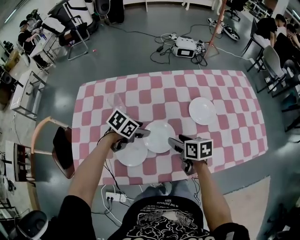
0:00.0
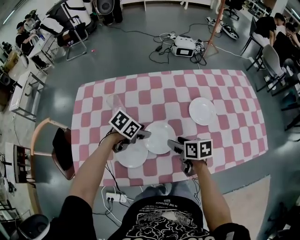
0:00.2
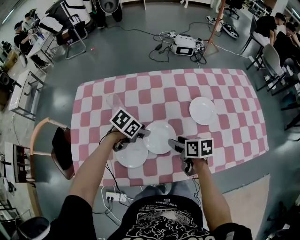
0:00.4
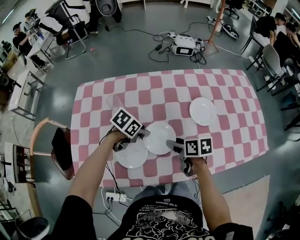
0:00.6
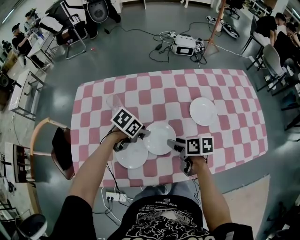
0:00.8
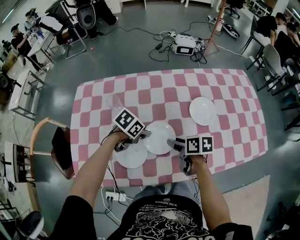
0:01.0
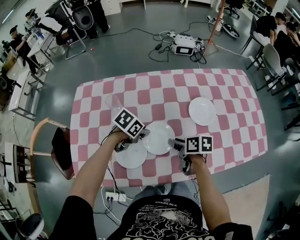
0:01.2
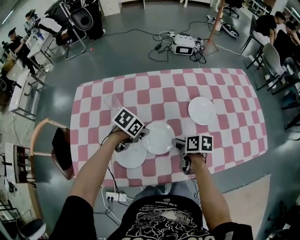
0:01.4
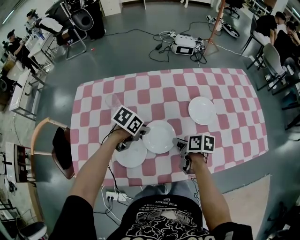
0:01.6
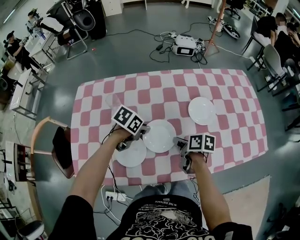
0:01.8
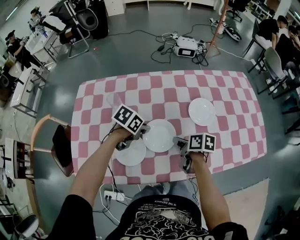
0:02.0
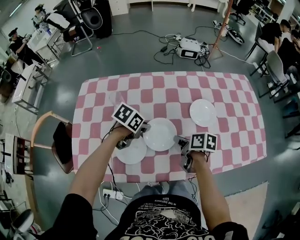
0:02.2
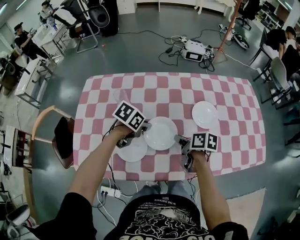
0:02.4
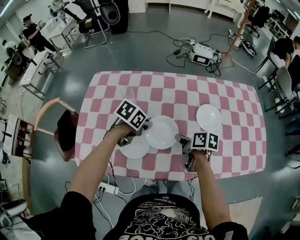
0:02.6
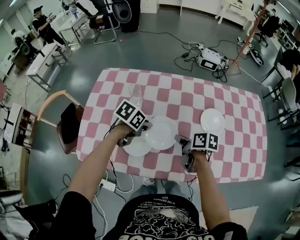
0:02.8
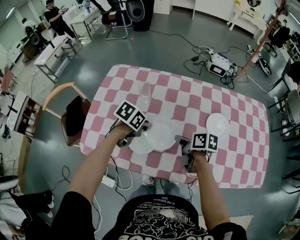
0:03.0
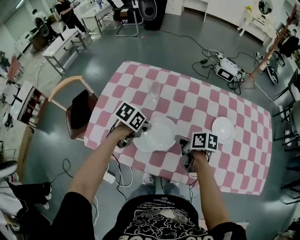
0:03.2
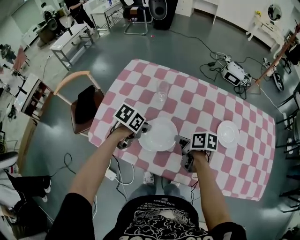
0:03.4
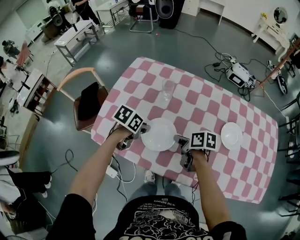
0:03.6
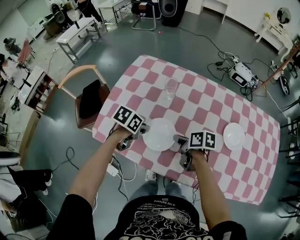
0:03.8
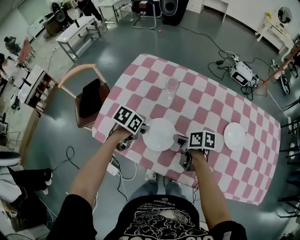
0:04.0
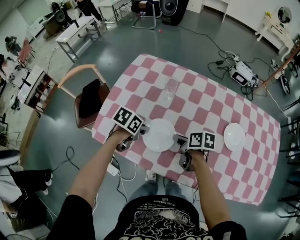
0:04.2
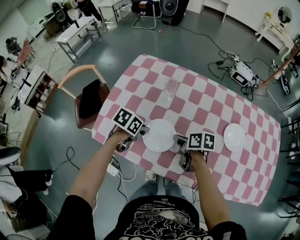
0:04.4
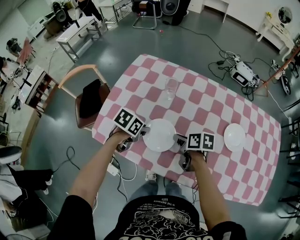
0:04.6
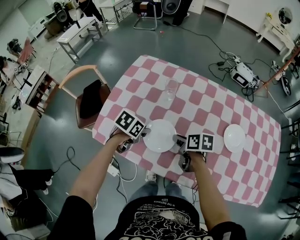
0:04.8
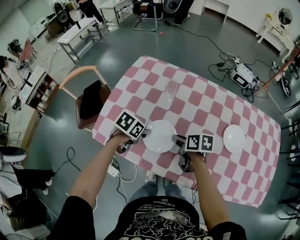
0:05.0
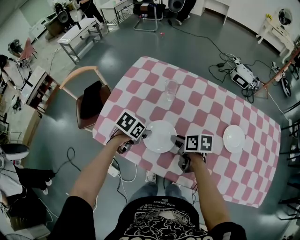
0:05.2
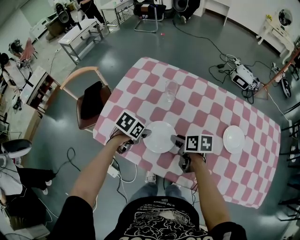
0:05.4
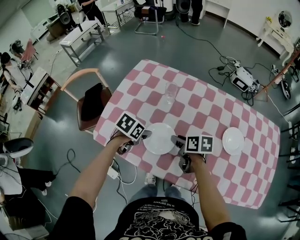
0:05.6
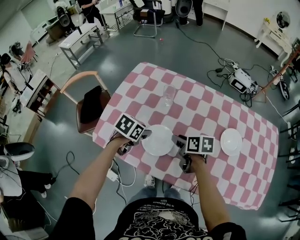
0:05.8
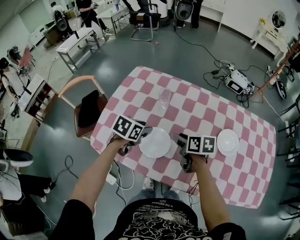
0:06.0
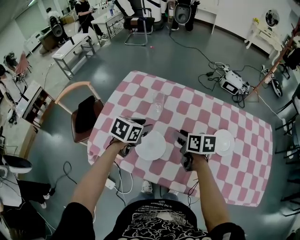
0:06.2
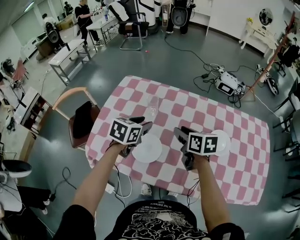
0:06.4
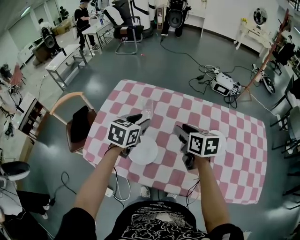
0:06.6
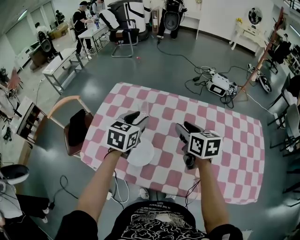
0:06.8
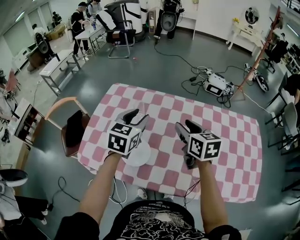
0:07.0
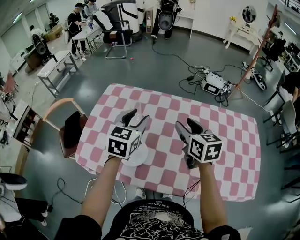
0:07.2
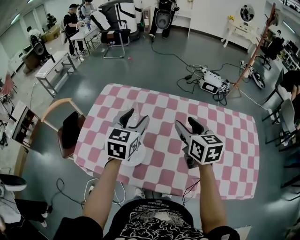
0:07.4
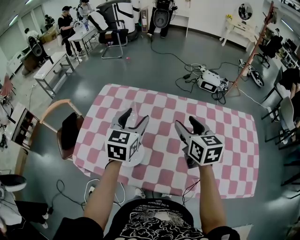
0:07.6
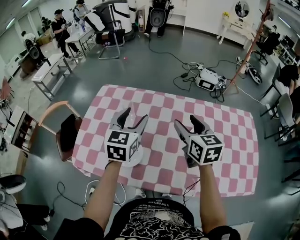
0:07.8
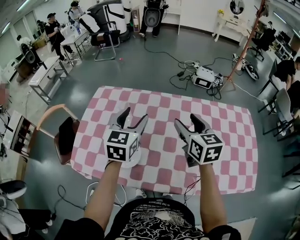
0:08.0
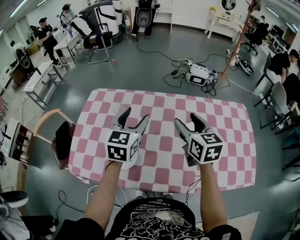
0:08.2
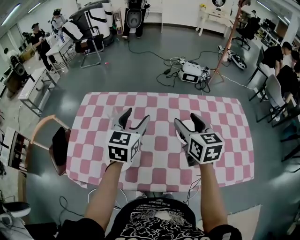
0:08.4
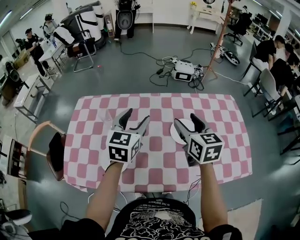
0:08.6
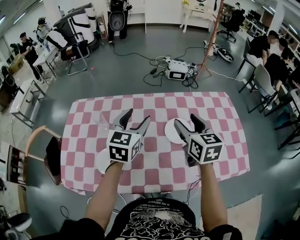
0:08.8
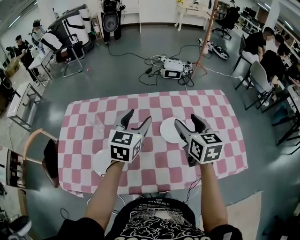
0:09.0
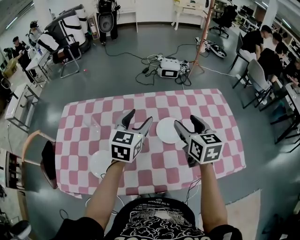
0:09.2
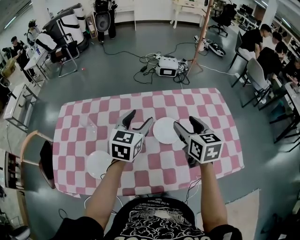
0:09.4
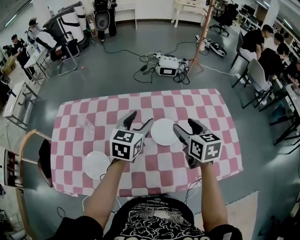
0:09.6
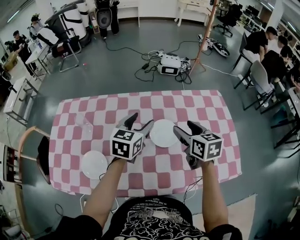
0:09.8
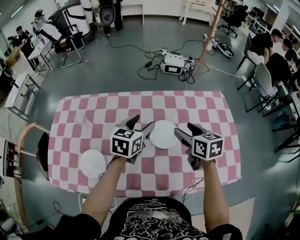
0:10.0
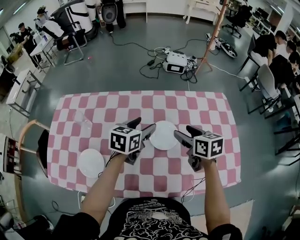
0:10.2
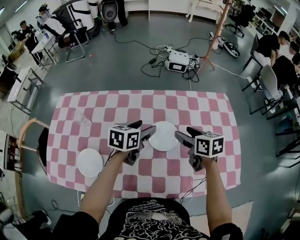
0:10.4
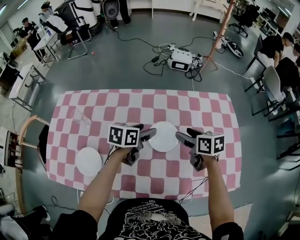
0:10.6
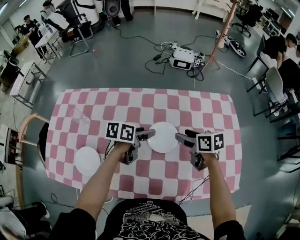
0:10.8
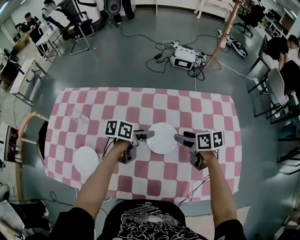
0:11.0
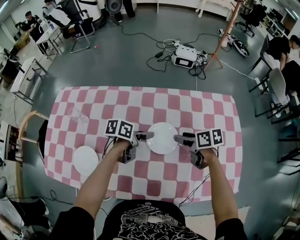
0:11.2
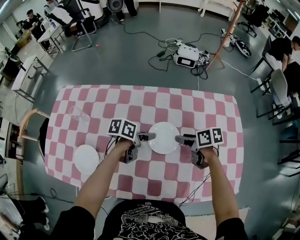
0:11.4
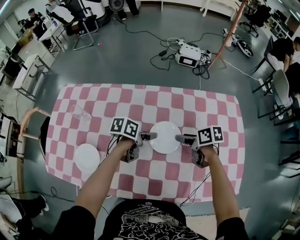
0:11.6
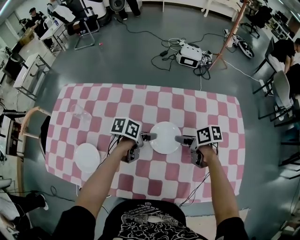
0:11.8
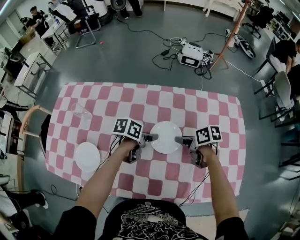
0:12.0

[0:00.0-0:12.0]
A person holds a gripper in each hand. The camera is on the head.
0:00.0 to 0:01.6: The left gripper closes, while the right gripper rotates roughly 20 degrees, and closes.
0:01.6 to 0:03.0: The right gripper ends up some 5 cm from where it was; the left gripper ends up roughly 10 cm from where it was, and turns by roughly 20 degrees.
0:03.0 to 0:04.4: The two grippers go approximately 10 cm to the left.
0:04.4 to 0:06.0: Both grippers travel together upward, some 5 cm. The right gripper opens.
0:06.0 to 0:07.6: The two grippers go roughly 20 cm upward and to the right. The right gripper swivels about 40 degrees. The left gripper tilts its fingers approximately 30 degrees upward, and opens up.
0:07.6 to 0:09.0: The grippers both shift to the right by some 15 cm.
0:09.0 to 0:10.4: The right gripper heads downward, to the right and forward, covering roughly 15 cm, and changes its angle by about 30 degrees. The left gripper is displaced downward and to the right by about 15 cm, and turns by some 30 degrees.
0:10.4 to 0:12.0: Both grippers move downward, roughly 10 cm. The left gripper swivels about 30 degrees, while the right gripper turns by about 30 degrees.

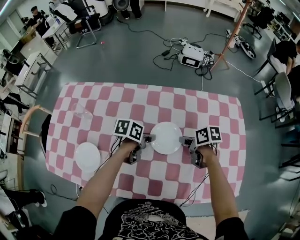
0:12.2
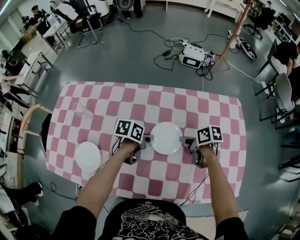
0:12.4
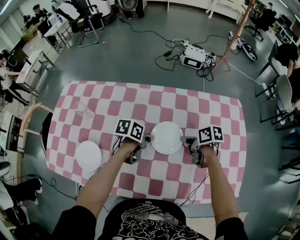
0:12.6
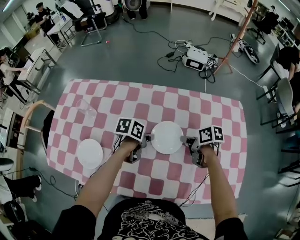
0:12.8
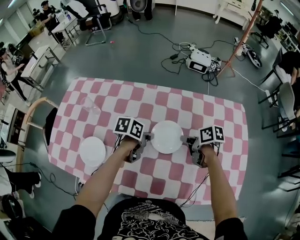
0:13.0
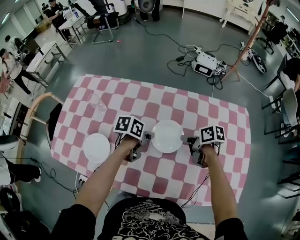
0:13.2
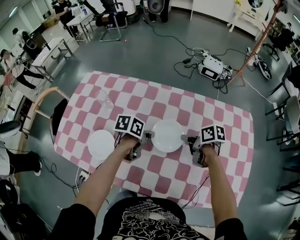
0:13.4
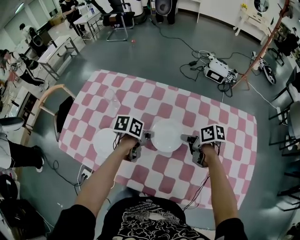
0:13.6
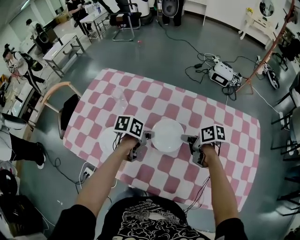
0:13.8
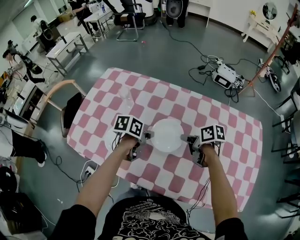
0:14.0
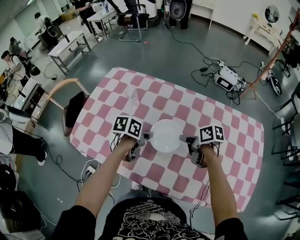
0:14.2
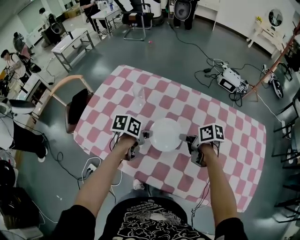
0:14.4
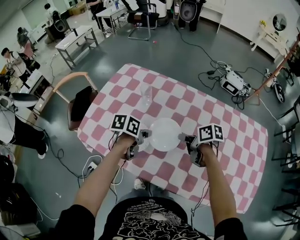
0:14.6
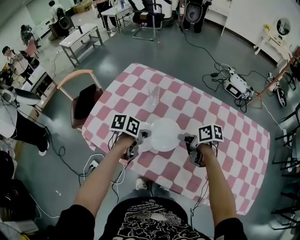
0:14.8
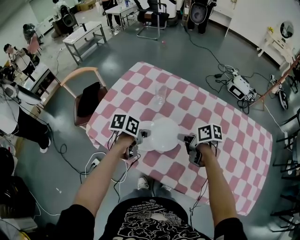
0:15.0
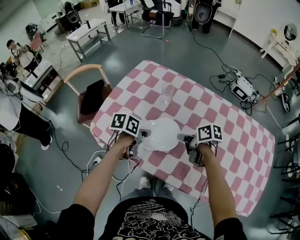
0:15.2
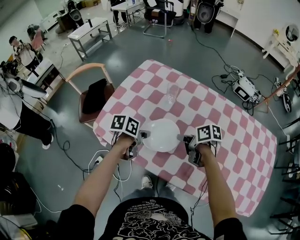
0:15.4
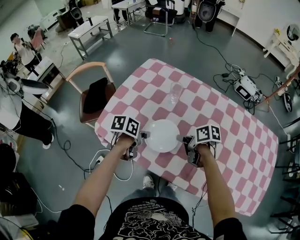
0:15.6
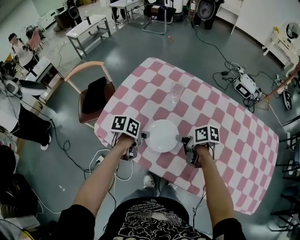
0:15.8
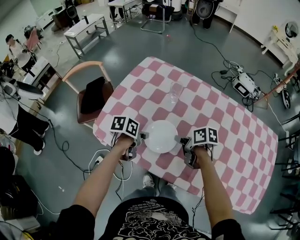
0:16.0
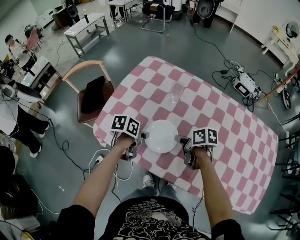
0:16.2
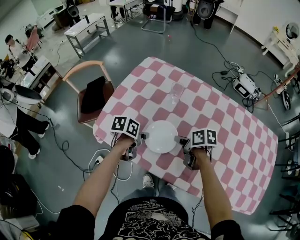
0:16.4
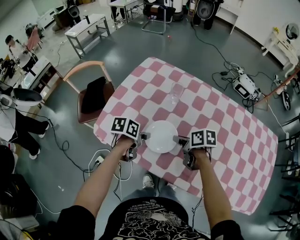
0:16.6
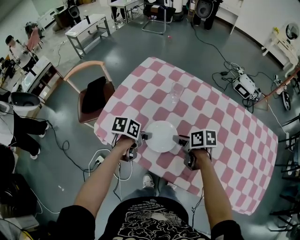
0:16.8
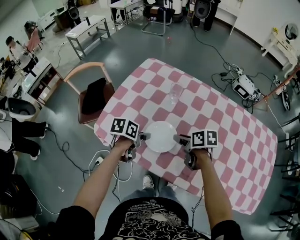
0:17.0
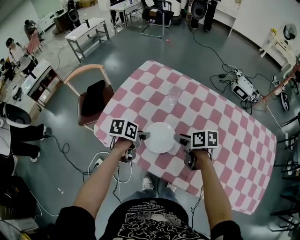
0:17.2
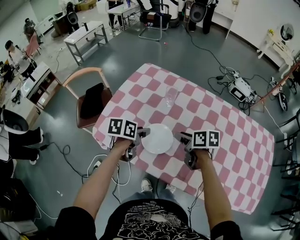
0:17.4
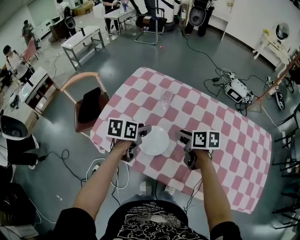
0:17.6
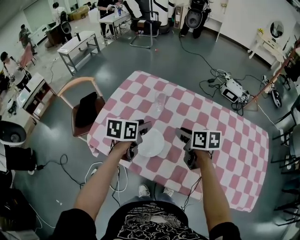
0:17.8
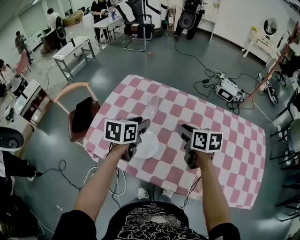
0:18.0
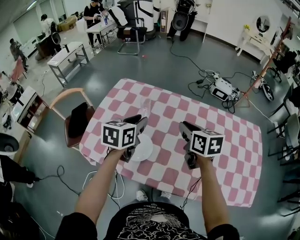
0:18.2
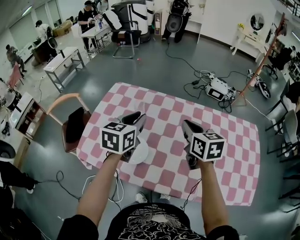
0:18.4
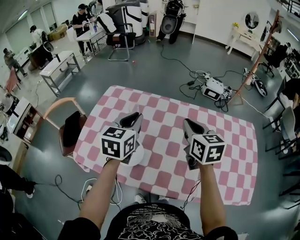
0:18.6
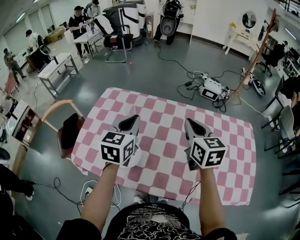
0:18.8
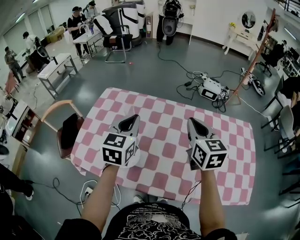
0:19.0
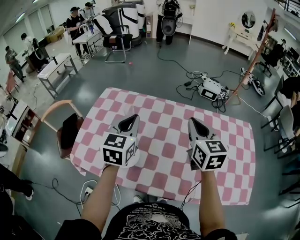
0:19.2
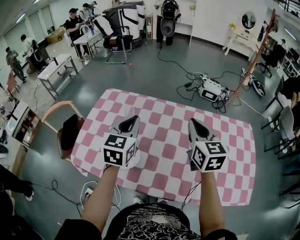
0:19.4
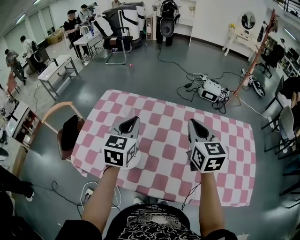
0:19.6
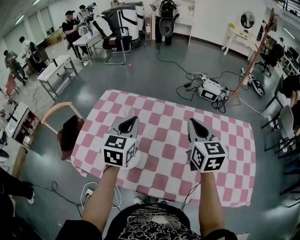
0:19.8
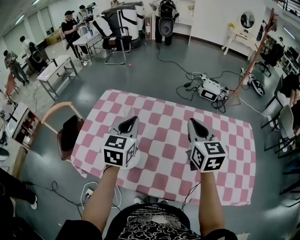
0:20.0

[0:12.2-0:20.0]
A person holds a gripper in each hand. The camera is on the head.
0:12.2 to 0:13.8: The right gripper changes place by some 15 cm. Meanwhile the left gripper shifts by about 15 cm.
0:13.8 to 0:15.4: Both grippers travel together to the left, approximately 25 cm.
0:15.4 to 0:16.8: The right gripper opens up; the left gripper opens its fingers.
0:16.8 to 0:18.4: The two grippers go approximately 25 cm upward and to the right. The right gripper rotates approximately 50 degrees, and closes up; the left gripper rotates roughly 50 degrees.
0:18.4 to 0:20.0: The right gripper moves to the right and upward, approximately 10 cm.

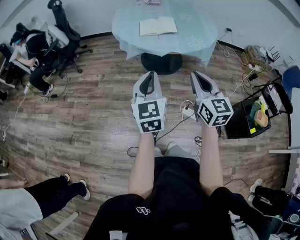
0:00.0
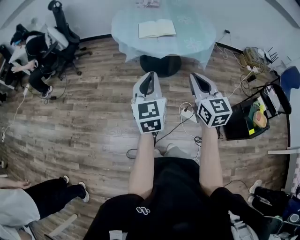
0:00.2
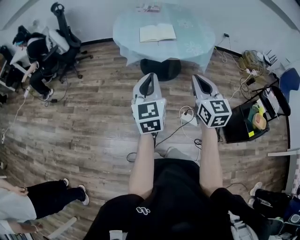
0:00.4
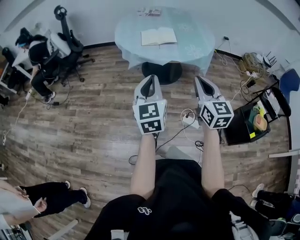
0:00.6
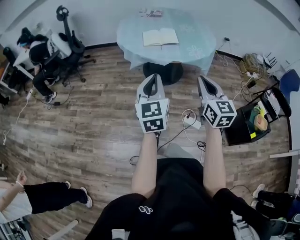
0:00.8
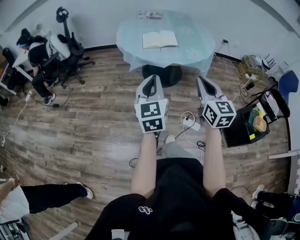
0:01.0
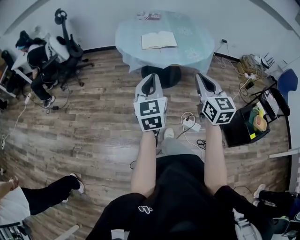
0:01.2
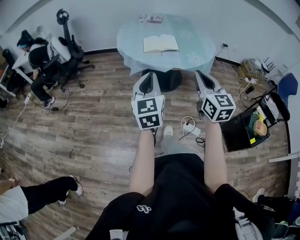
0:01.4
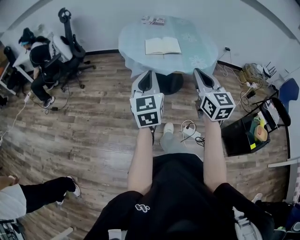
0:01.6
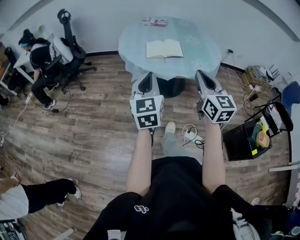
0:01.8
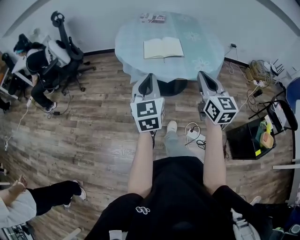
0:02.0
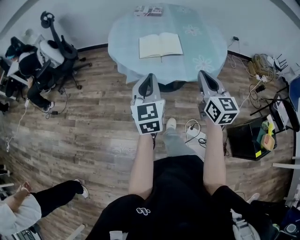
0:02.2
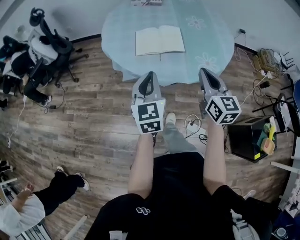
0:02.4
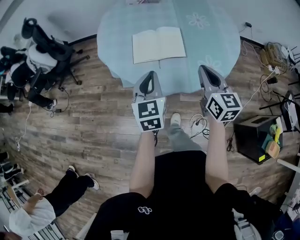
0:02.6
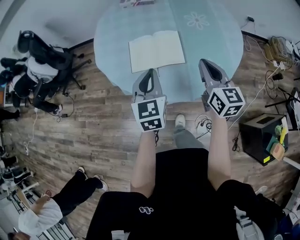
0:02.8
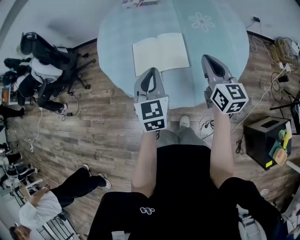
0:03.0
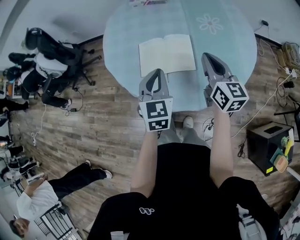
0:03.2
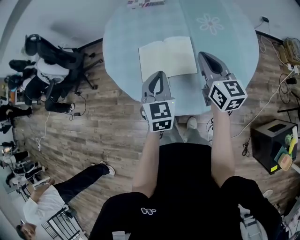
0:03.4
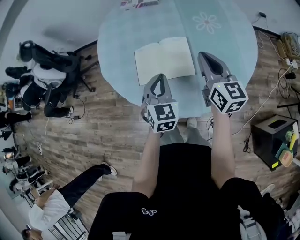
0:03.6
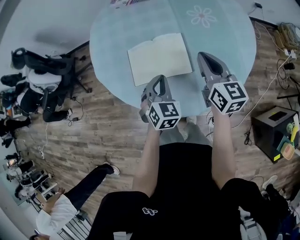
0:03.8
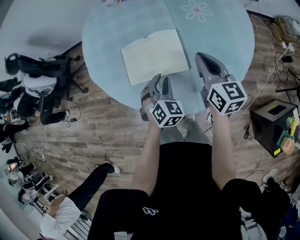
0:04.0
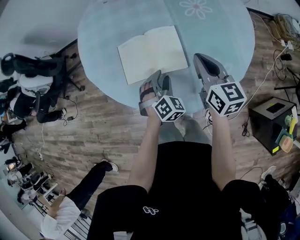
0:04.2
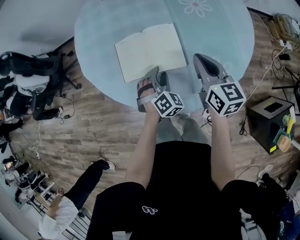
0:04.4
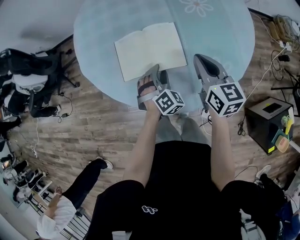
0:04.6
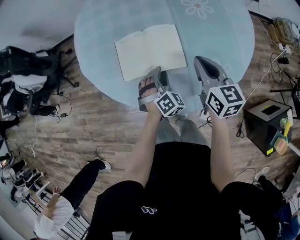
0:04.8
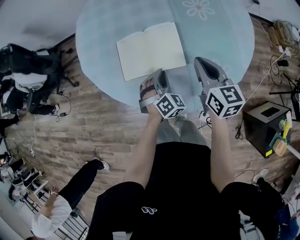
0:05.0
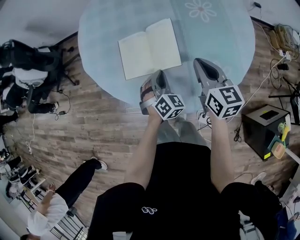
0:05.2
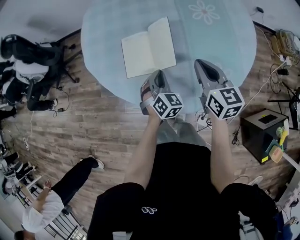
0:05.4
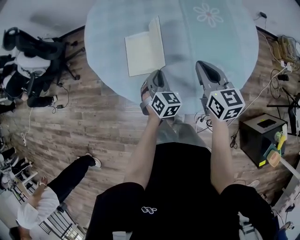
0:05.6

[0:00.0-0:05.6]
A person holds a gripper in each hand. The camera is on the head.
0:00.0 to 0:01.4: The left gripper changes place by some 5 cm.
0:01.4 to 0:02.8: The two grippers travel together, forward, some 50 cm.
0:02.8 to 0:04.2: The right gripper heads forward and downward, covering roughly 10 cm, while the left gripper is displaced downward by approximately 20 cm, rolls clockwise, seen from behind, by roughly 50 degrees, and opens up.
0:04.2 to 0:05.6: The left gripper rotates some 30 degrees, and closes up.
